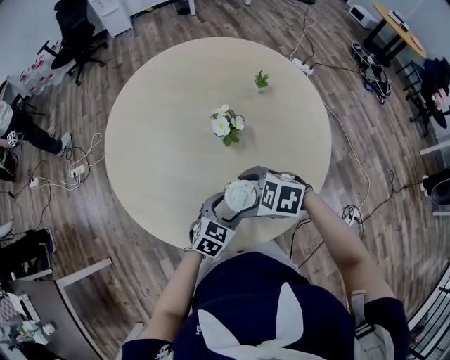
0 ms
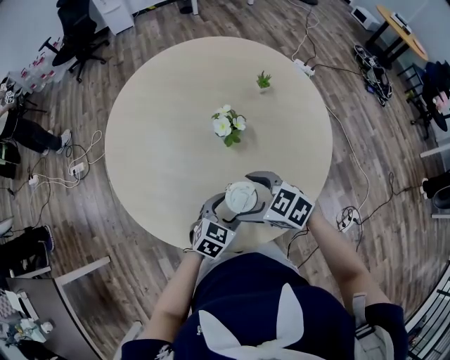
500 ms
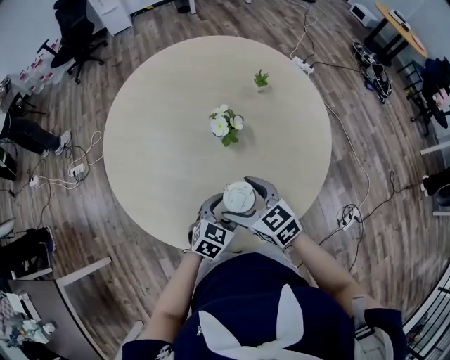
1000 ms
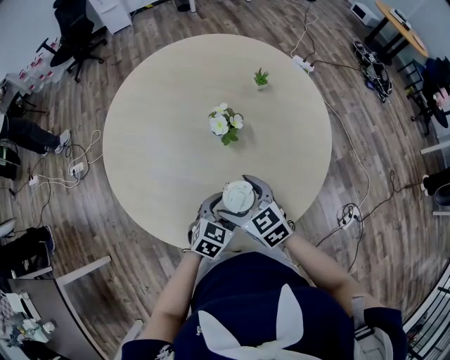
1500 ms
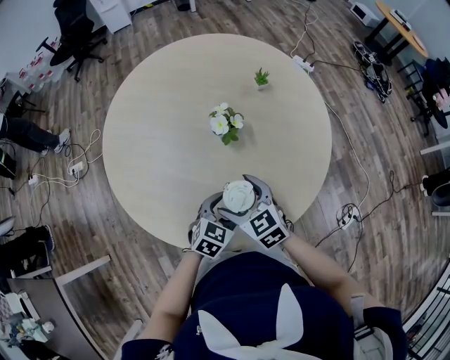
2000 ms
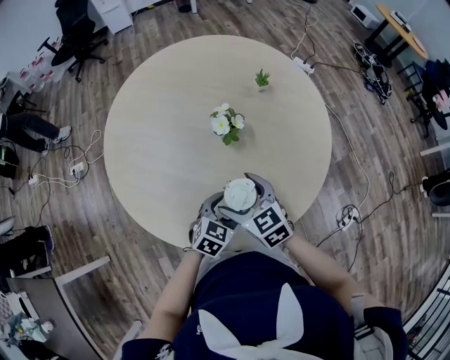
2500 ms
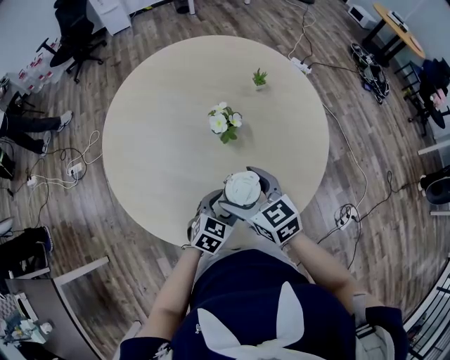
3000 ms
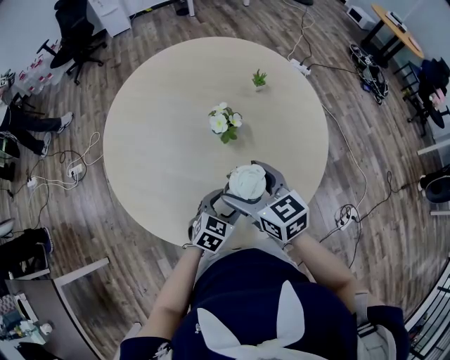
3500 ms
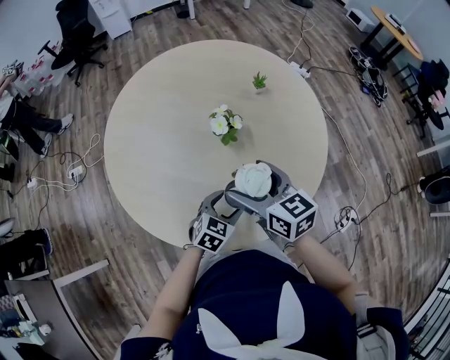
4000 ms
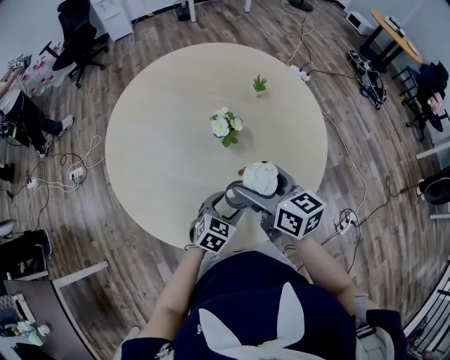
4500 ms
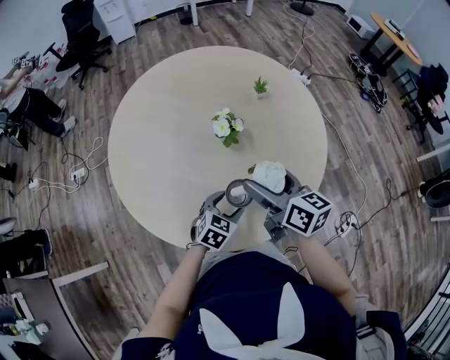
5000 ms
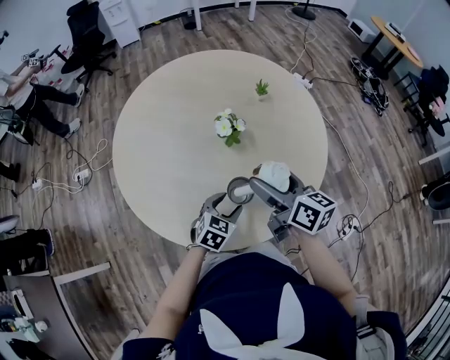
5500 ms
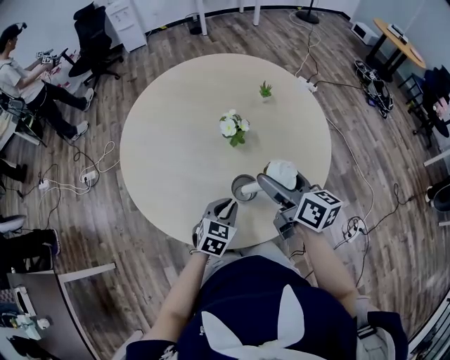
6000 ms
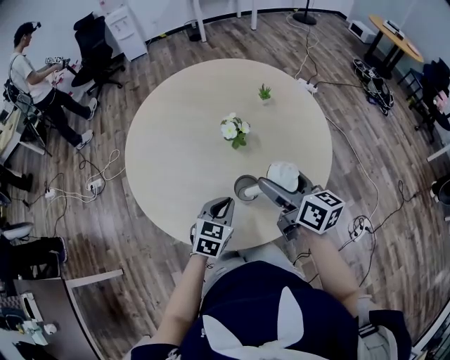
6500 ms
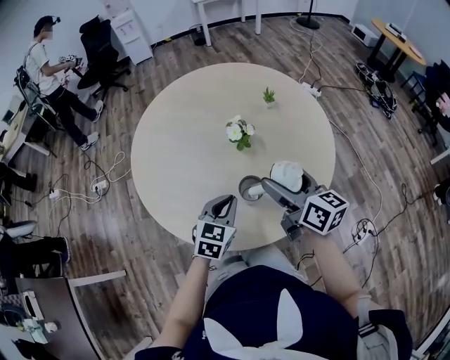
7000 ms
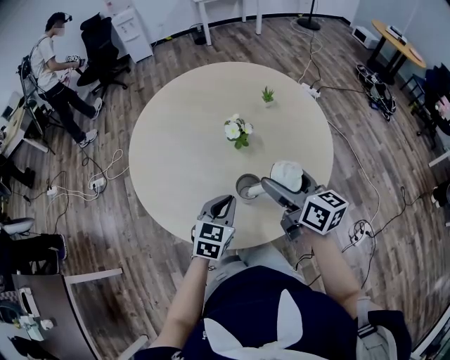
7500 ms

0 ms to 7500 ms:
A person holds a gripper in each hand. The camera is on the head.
0 ms to 2000 ms: The right gripper swivels some 40 degrees.
2000 ms to 4000 ms: The right gripper is displaced upward by approximately 10 cm, and turns by approximately 20 degrees.
4000 ms to 5500 ms: The right gripper goes some 5 cm to the right, and turns by roughly 20 degrees.
5500 ms to 7500 ms: The left gripper heads upward, covering roughly 10 cm, and closes up.

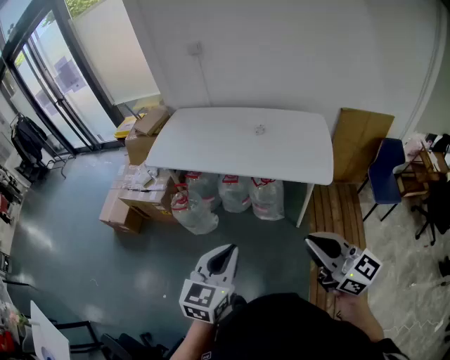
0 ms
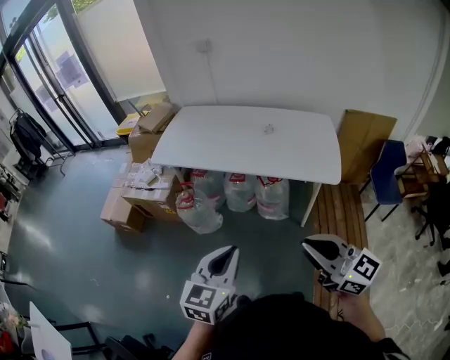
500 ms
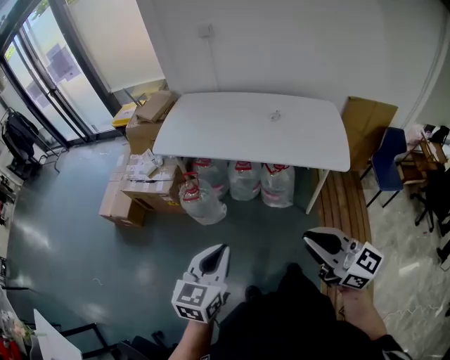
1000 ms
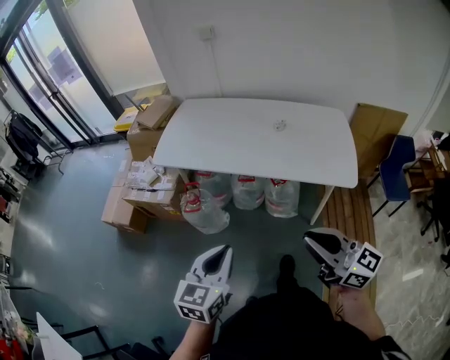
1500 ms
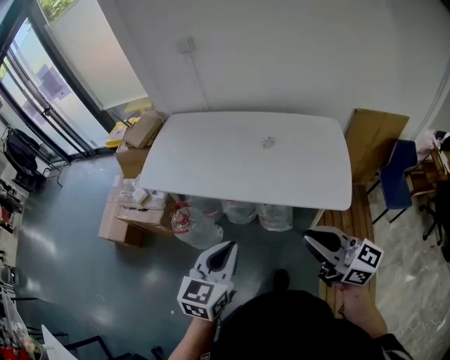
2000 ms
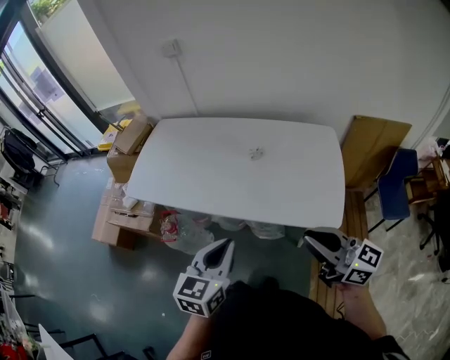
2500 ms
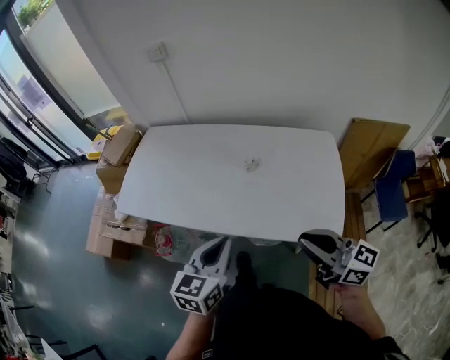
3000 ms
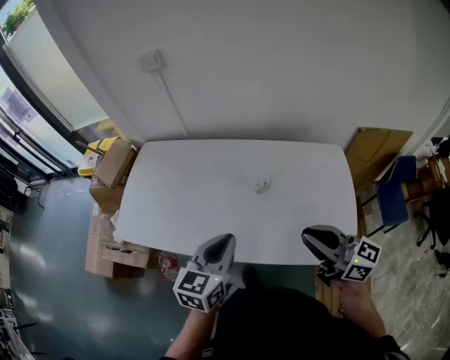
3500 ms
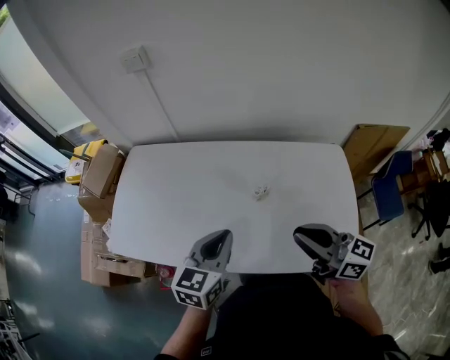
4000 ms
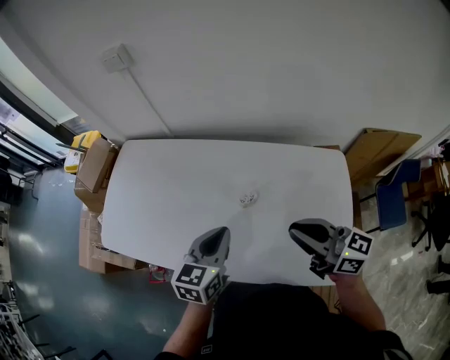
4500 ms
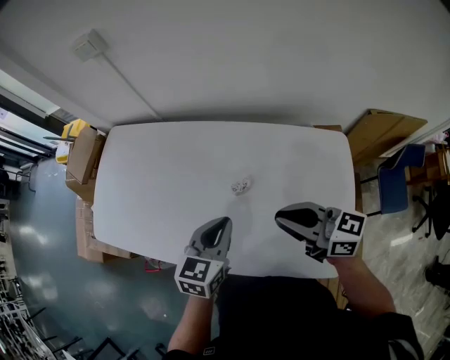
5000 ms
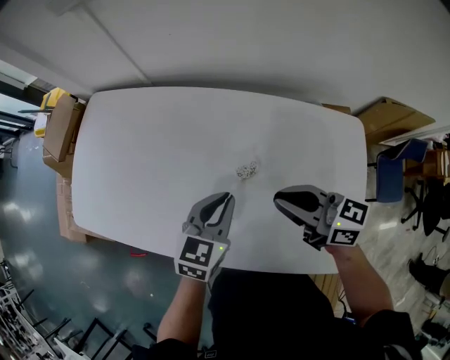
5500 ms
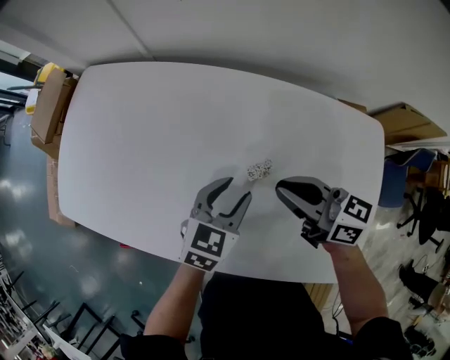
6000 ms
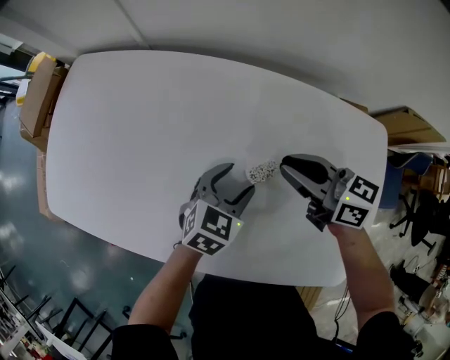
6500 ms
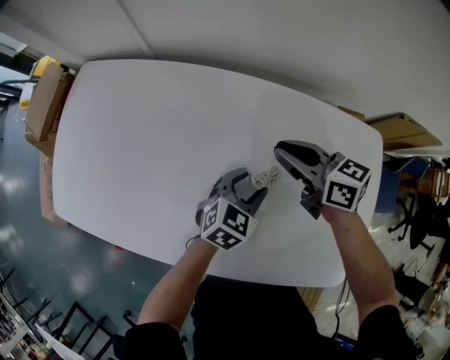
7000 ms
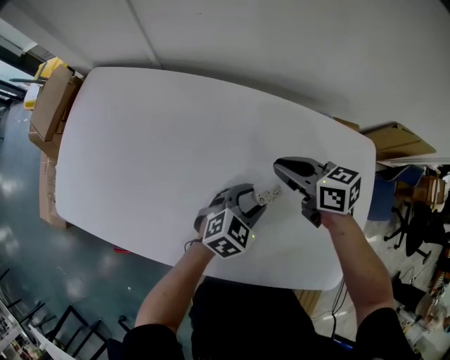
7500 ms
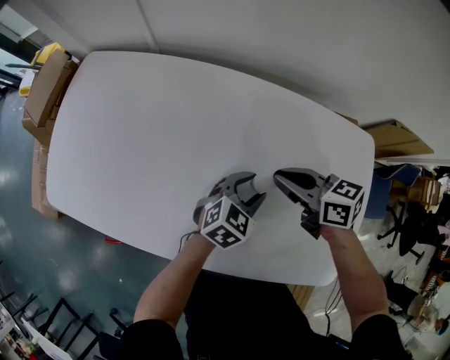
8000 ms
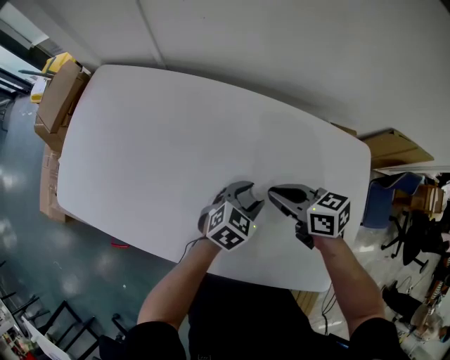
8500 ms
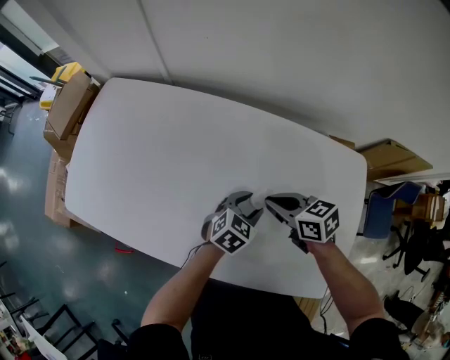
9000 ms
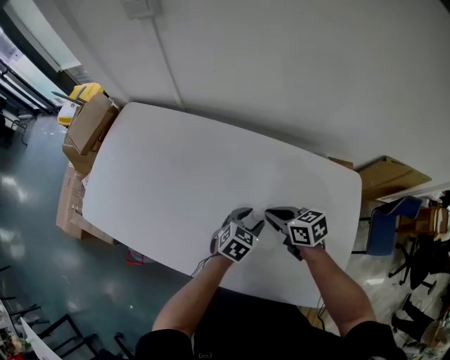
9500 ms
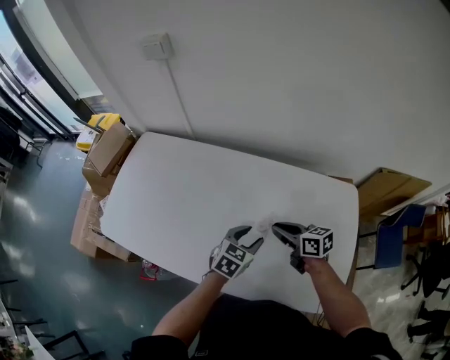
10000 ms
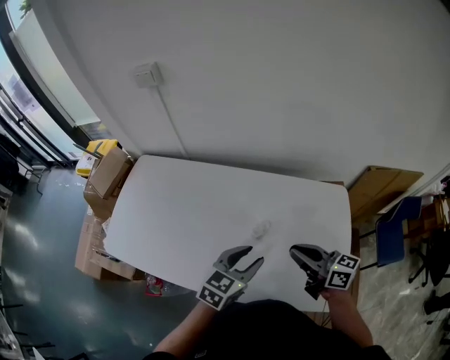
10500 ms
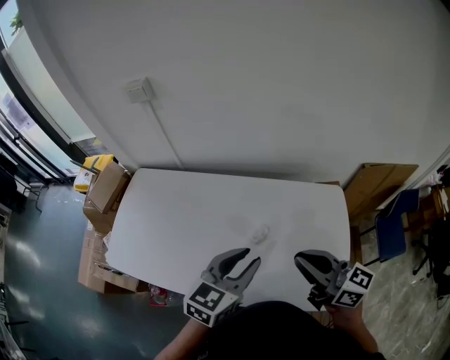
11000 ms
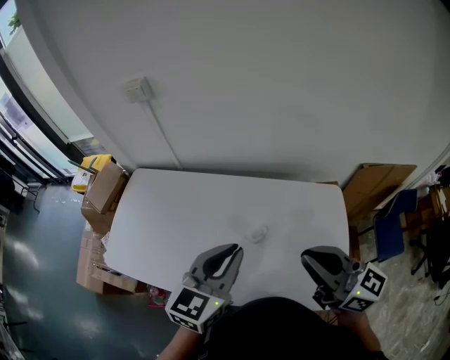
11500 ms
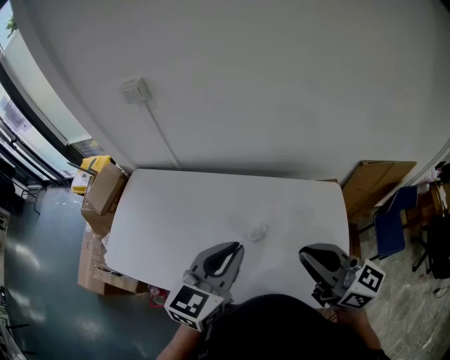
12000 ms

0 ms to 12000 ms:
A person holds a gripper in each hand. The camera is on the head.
0 ms to 2000 ms: Both grippers move forward, roughly 20 cm.
2000 ms to 4000 ms: Both grippers travel together forward, roughly 35 cm.
4000 ms to 6000 ms: The right gripper moves downward and forward, about 25 cm, and turns by roughly 20 degrees. The left gripper moves downward, forward and to the right, roughly 30 cm, and opens up.
6000 ms to 8000 ms: The right gripper goes forward and returns, approximately 10 cm each way. Meanwhile the left gripper heads to the right, covering some 5 cm.
8000 ms to 10000 ms: The right gripper moves approximately 5 cm, while the left gripper heads upward, covering approximately 10 cm.
10000 ms to 12000 ms: The grippers both shift upward by some 30 cm. The right gripper changes its angle by about 40 degrees. The left gripper rotates some 30 degrees, and closes up.

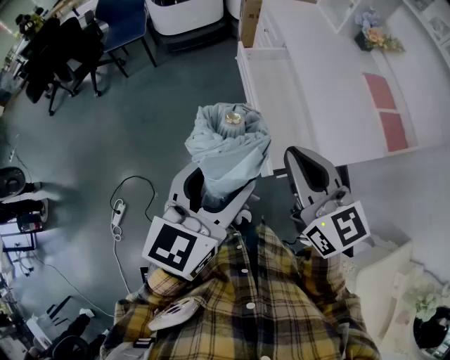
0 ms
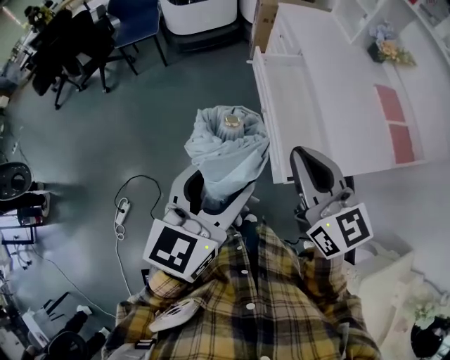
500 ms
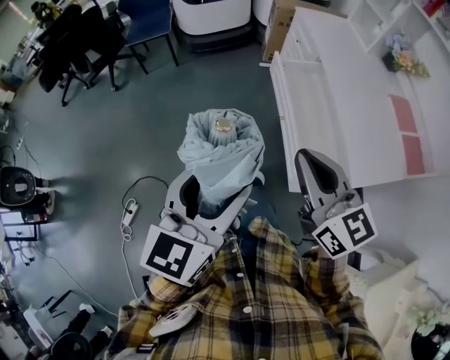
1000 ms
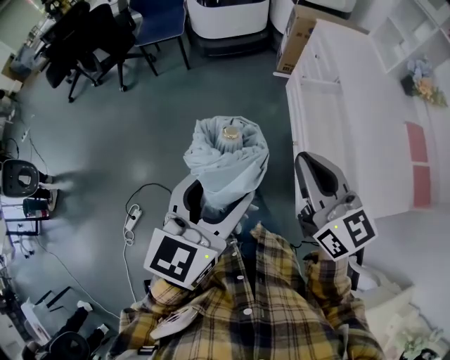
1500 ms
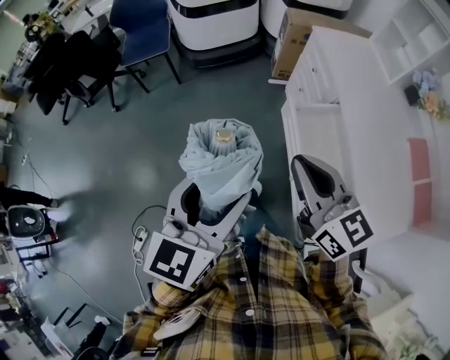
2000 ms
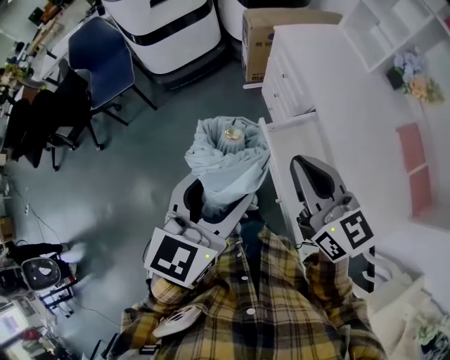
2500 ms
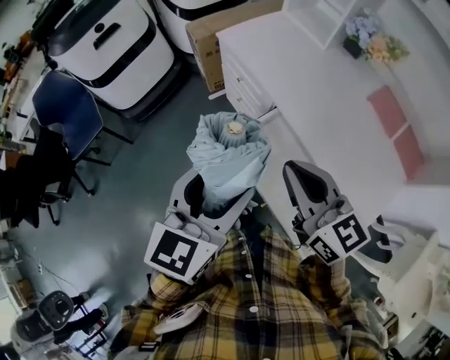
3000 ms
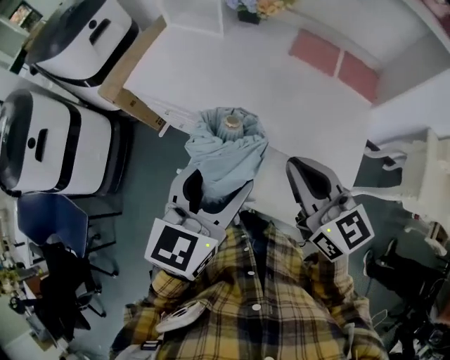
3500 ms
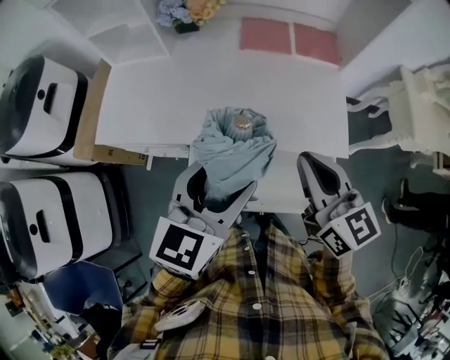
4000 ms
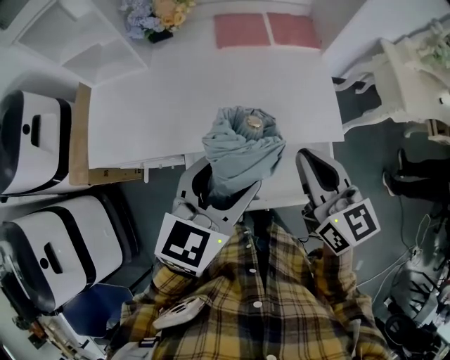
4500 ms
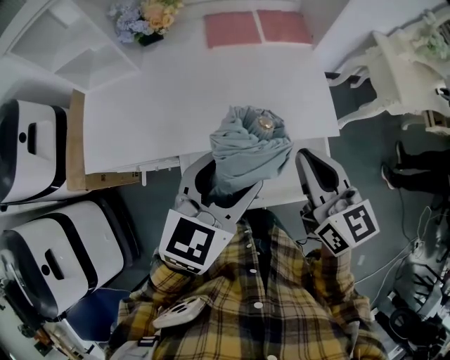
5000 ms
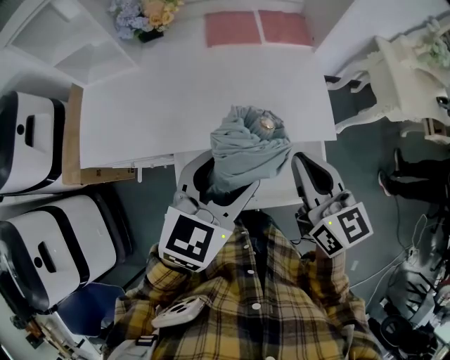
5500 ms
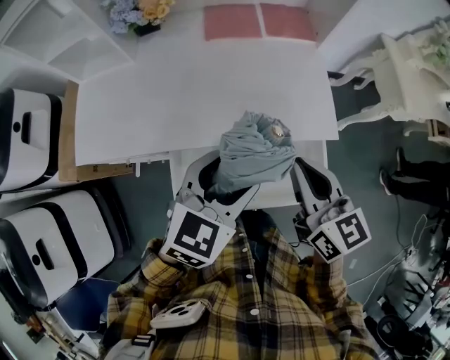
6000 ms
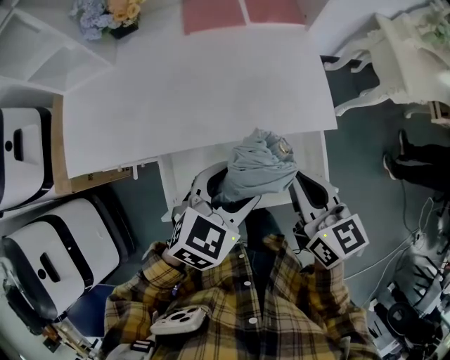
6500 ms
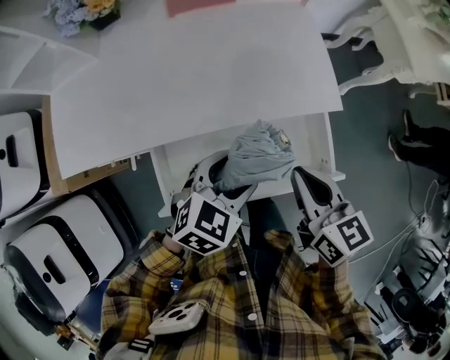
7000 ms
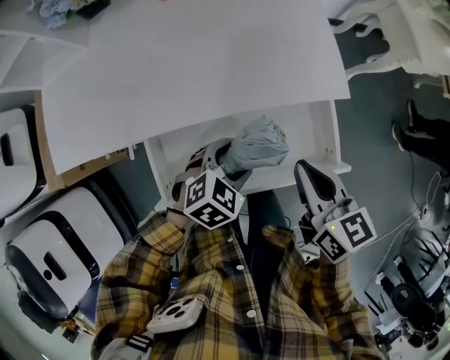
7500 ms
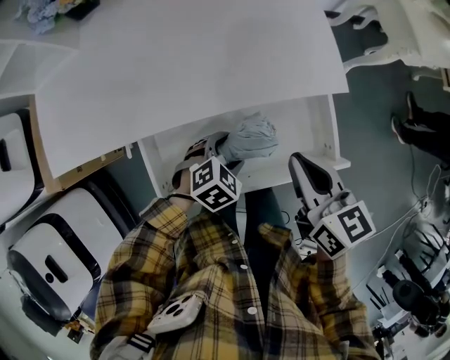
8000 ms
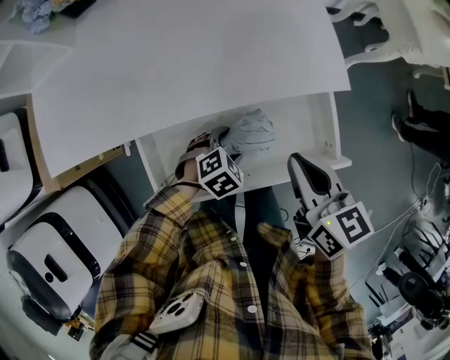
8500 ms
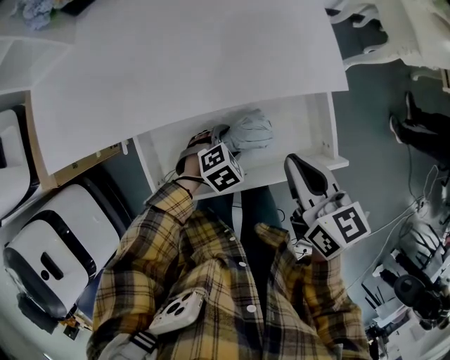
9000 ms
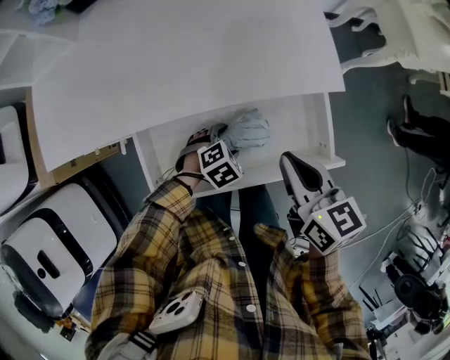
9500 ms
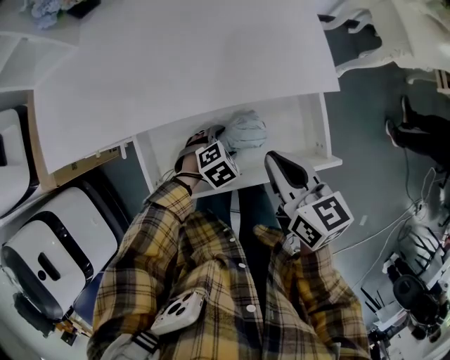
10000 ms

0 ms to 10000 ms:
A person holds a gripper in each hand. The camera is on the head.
0 ms to 2000 ms: The left gripper moves forward and to the left, about 30 cm. The right gripper heads forward, covering some 30 cm.
2000 ms to 4000 ms: The left gripper moves some 40 cm, and swivels some 80 degrees, while the right gripper shifts by roughly 30 cm, and changes its angle by about 80 degrees.
4000 ms to 6000 ms: The right gripper changes place by some 5 cm. Meanwhile the left gripper shifts approximately 10 cm to the right and downward, and rotates some 20 degrees.
6000 ms to 8000 ms: The right gripper goes approximately 15 cm downward. The left gripper shifts roughly 30 cm downward, and points its fingers approximately 30 degrees further downward.
8000 ms to 10000 ms: The left gripper travels downward by approximately 5 cm.
